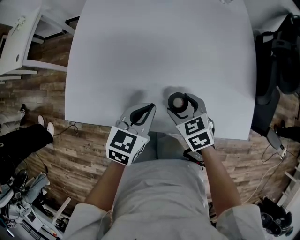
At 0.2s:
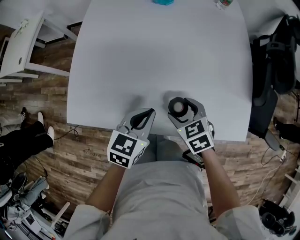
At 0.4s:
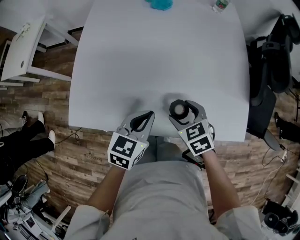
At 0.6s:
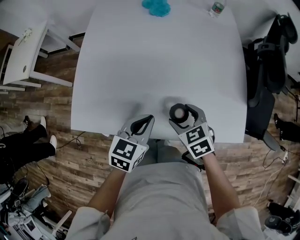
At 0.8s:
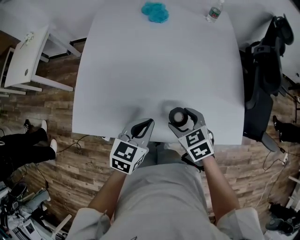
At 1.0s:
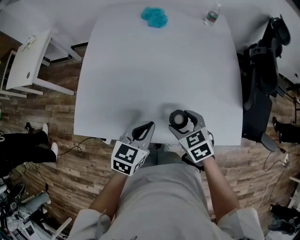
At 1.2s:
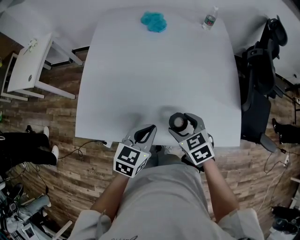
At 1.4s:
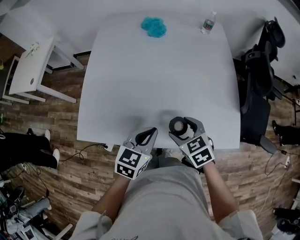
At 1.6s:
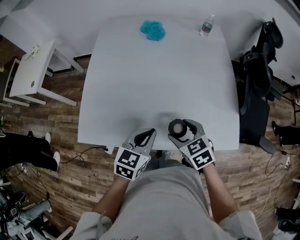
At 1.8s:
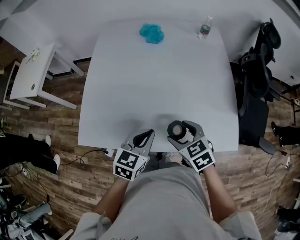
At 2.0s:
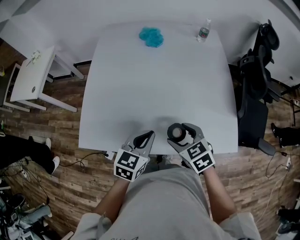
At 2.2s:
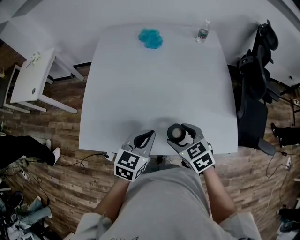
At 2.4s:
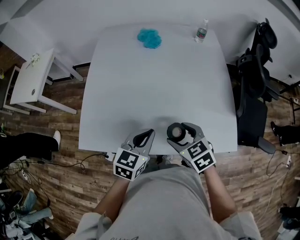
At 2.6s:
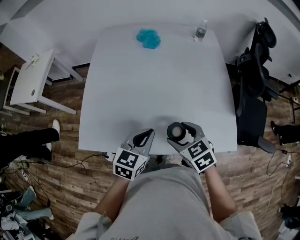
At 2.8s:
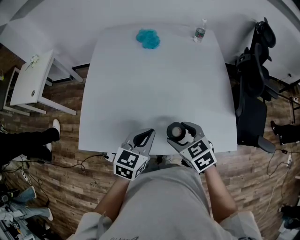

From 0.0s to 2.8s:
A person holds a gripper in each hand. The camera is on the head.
From 0.0s to 1.4s: The two grippers go about 5 cm upward.
From 1.4s to 2.8s: The grippers move only a little.

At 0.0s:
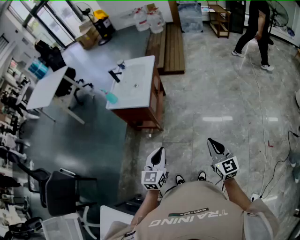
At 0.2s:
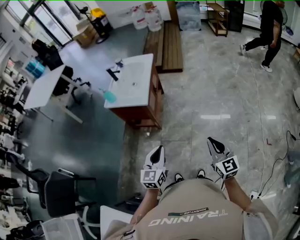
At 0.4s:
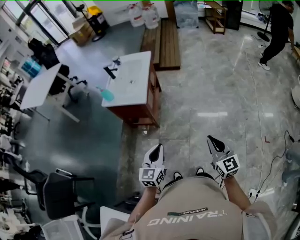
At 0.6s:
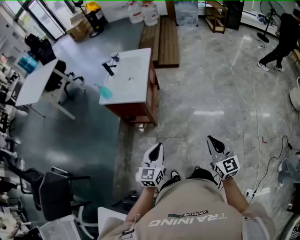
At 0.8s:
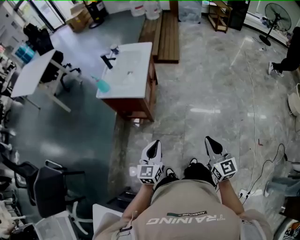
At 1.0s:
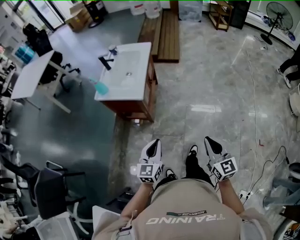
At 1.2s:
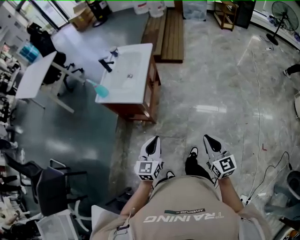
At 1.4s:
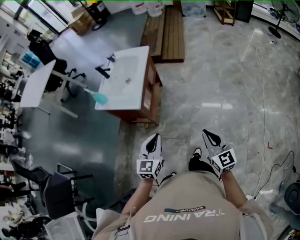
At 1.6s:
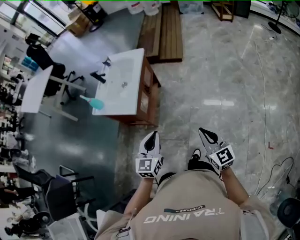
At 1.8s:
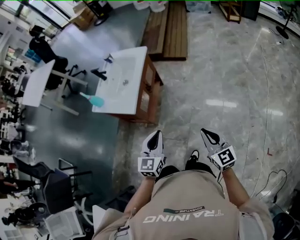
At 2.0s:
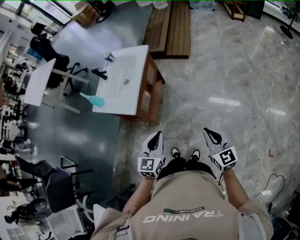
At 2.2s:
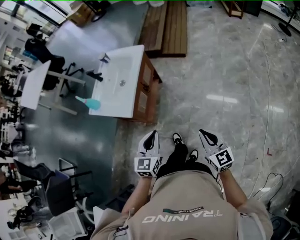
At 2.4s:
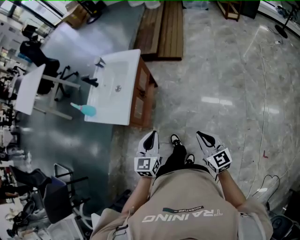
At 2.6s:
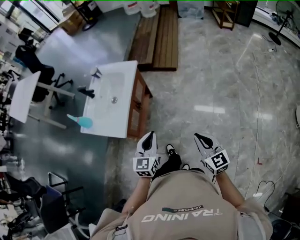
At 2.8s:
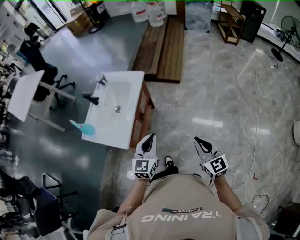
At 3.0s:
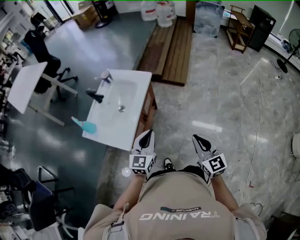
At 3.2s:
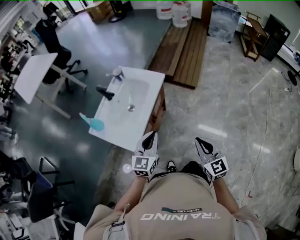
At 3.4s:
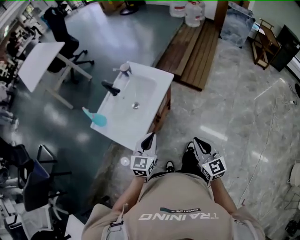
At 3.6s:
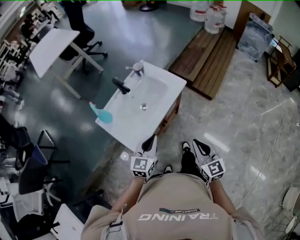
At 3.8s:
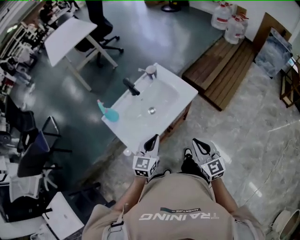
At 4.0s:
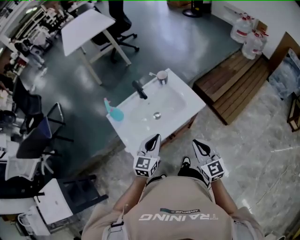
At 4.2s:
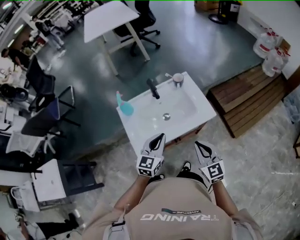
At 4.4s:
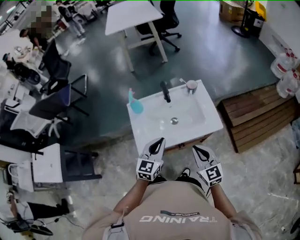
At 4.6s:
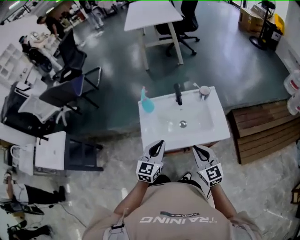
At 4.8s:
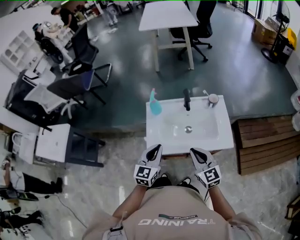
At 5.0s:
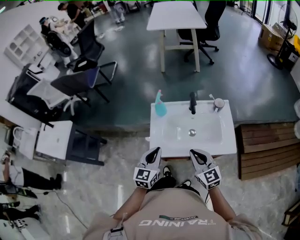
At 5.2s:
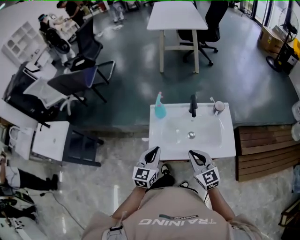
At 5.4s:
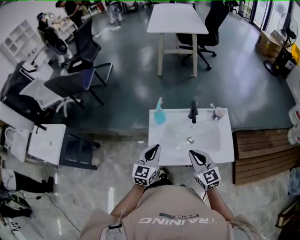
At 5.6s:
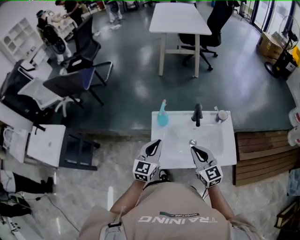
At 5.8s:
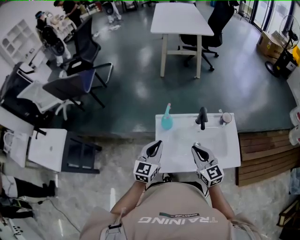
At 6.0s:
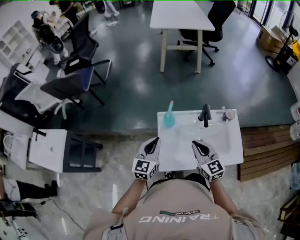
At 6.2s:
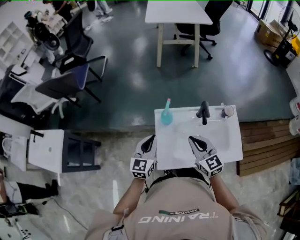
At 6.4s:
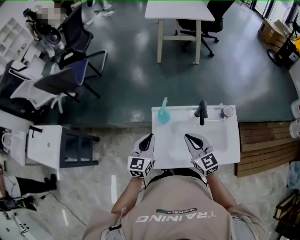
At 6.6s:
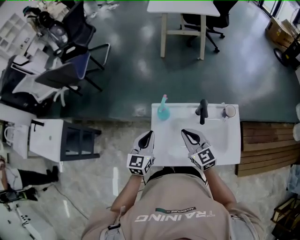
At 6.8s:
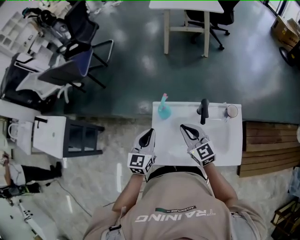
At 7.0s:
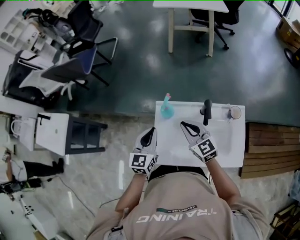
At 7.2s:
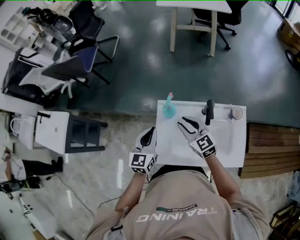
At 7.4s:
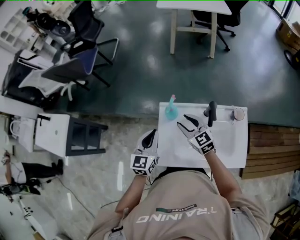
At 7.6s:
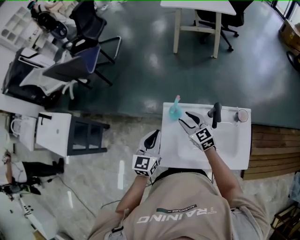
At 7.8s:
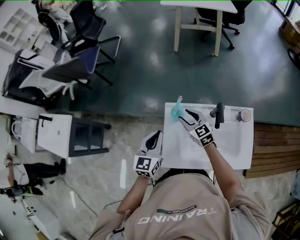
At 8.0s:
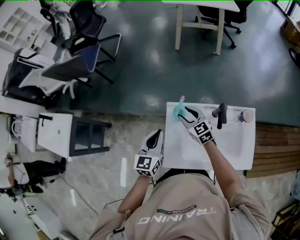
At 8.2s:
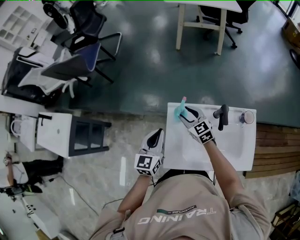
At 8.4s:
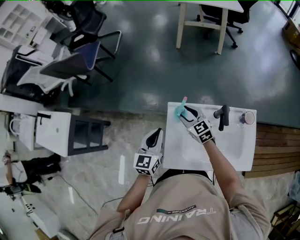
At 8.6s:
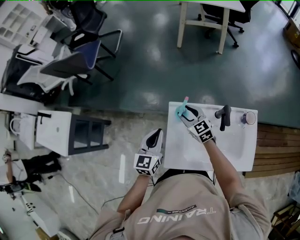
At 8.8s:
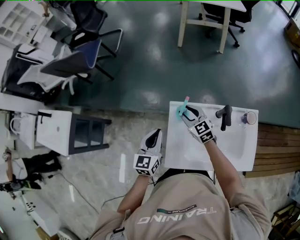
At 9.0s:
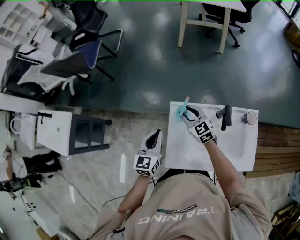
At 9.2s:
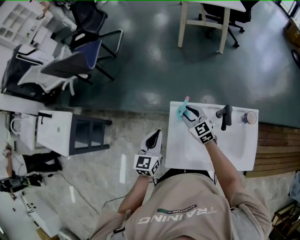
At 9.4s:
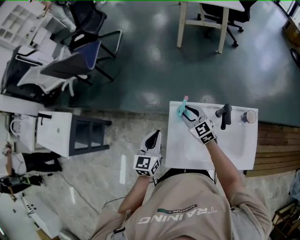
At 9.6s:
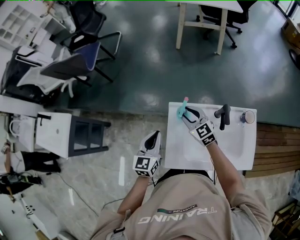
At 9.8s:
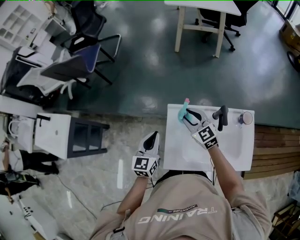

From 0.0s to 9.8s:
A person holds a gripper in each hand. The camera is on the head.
From 0.0s to 1.4s: Both grippers travel together forward, approximately 15 cm.
From 1.4s to 2.8s: Both grippers travel together forward, about 25 cm.
From 2.8s to 4.2s: The left gripper ends up roughly 20 cm from where it was, and turns by about 40 degrees; the right gripper moves roughly 35 cm, and rotates approximately 50 degrees.
From 4.2s to 5.6s: The left gripper shifts by about 20 cm, and changes its angle by approximately 30 degrees. The right gripper moves approximately 20 cm, and changes its angle by roughly 30 degrees.
From 5.6s to 7.0s: The left gripper shifts about 5 cm forward; the right gripper travels forward by about 15 cm.
From 7.0s to 8.4s: The right gripper travels forward, downward and to the left by approximately 15 cm, and opens up, while the left gripper ends up about 5 cm from where it was.
From 8.4s to 9.8s: The right gripper travels upward by some 5 cm.

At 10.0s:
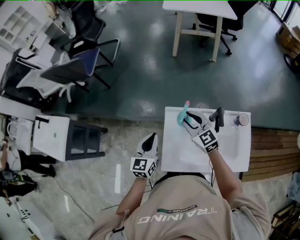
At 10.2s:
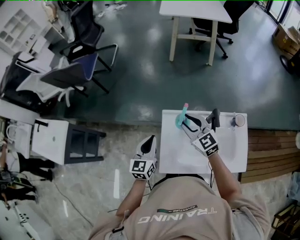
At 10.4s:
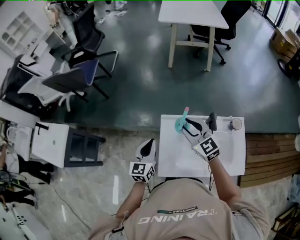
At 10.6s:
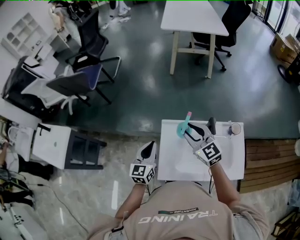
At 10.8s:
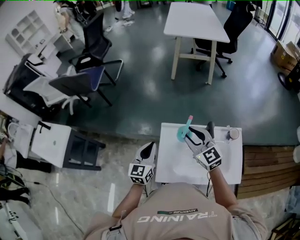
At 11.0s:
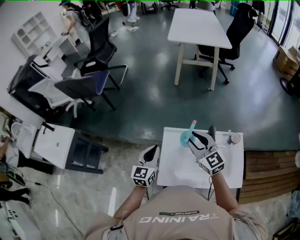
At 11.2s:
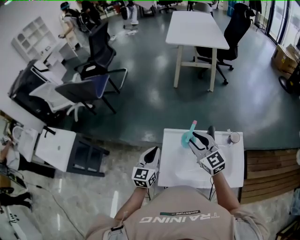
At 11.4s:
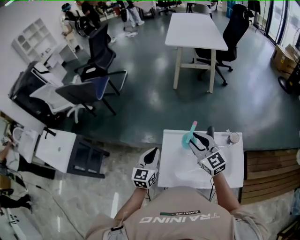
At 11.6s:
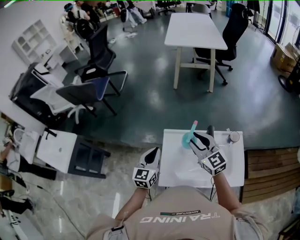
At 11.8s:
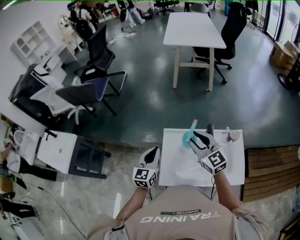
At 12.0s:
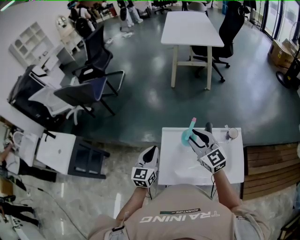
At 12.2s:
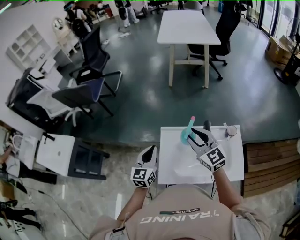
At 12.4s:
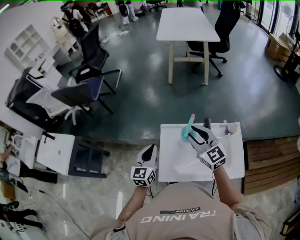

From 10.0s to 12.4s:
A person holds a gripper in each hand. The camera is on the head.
From 10.0s to 11.2s: The right gripper travels upward and backward by approximately 10 cm.
From 11.2s to 12.4s: The grippers make only small movements.

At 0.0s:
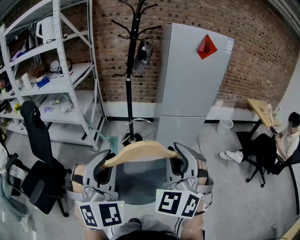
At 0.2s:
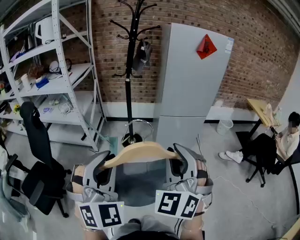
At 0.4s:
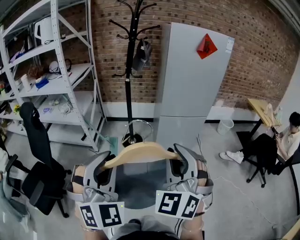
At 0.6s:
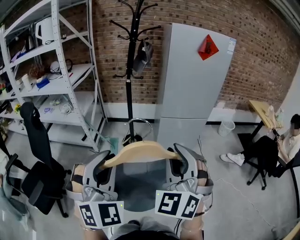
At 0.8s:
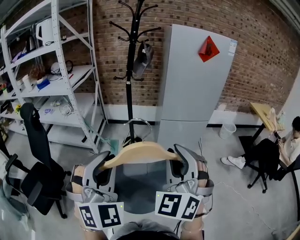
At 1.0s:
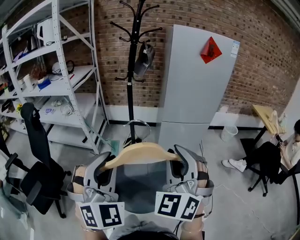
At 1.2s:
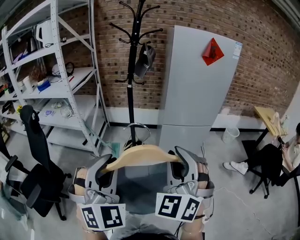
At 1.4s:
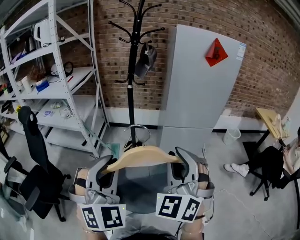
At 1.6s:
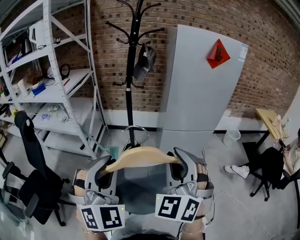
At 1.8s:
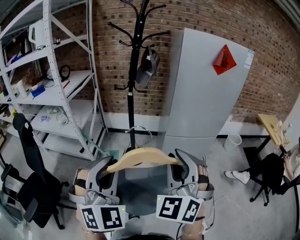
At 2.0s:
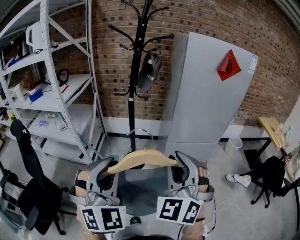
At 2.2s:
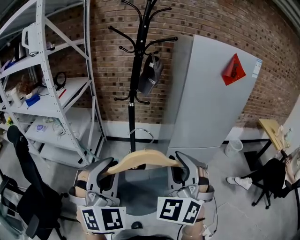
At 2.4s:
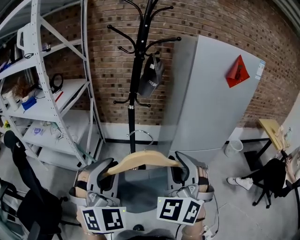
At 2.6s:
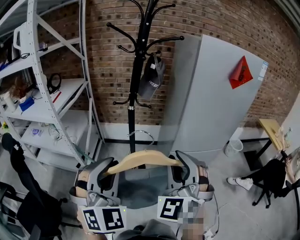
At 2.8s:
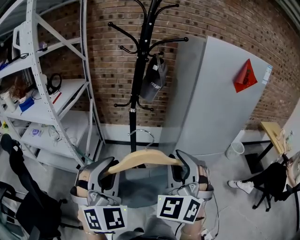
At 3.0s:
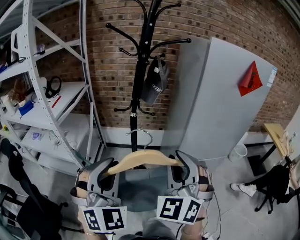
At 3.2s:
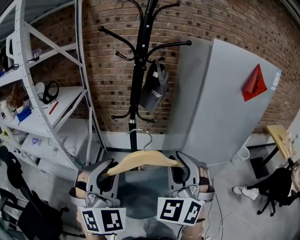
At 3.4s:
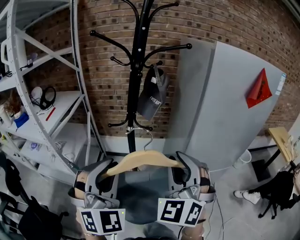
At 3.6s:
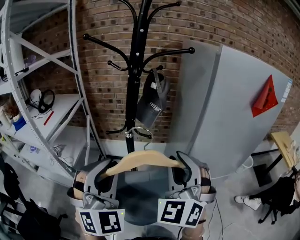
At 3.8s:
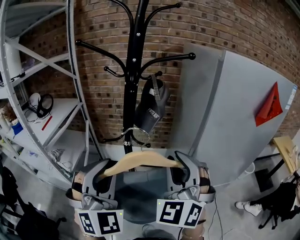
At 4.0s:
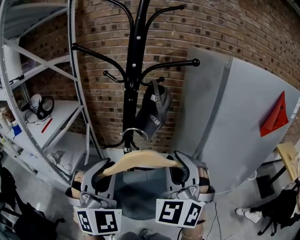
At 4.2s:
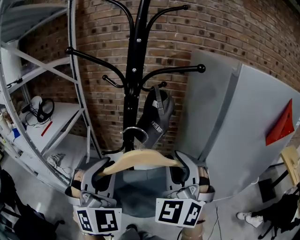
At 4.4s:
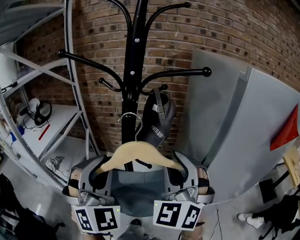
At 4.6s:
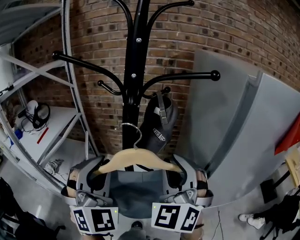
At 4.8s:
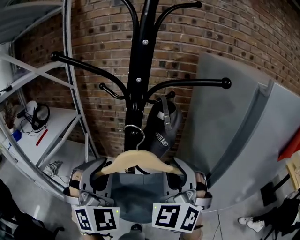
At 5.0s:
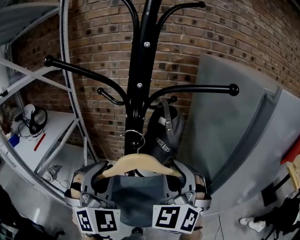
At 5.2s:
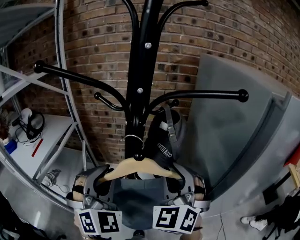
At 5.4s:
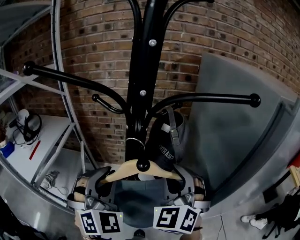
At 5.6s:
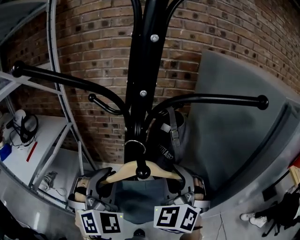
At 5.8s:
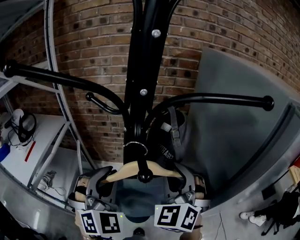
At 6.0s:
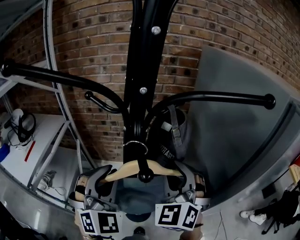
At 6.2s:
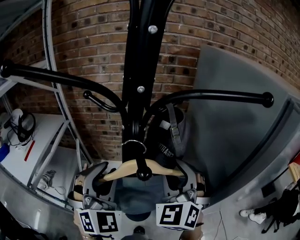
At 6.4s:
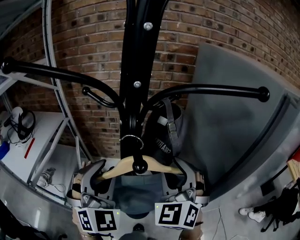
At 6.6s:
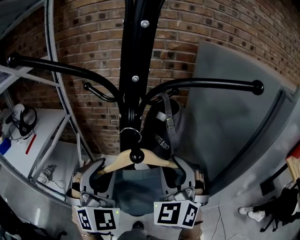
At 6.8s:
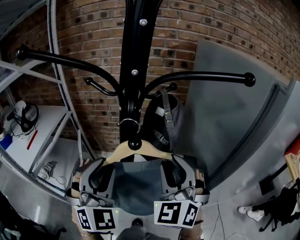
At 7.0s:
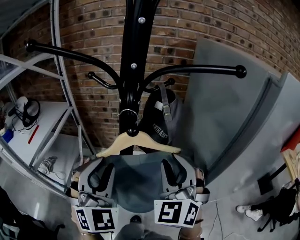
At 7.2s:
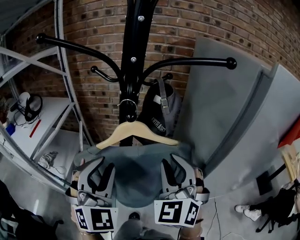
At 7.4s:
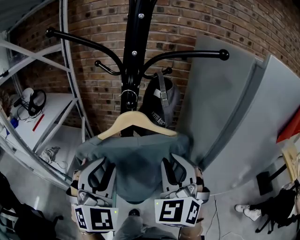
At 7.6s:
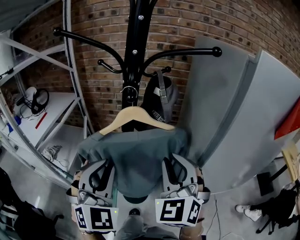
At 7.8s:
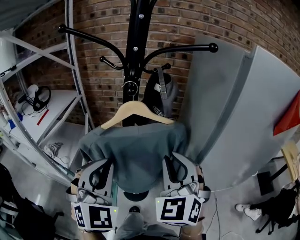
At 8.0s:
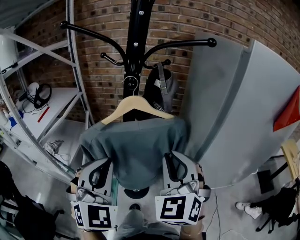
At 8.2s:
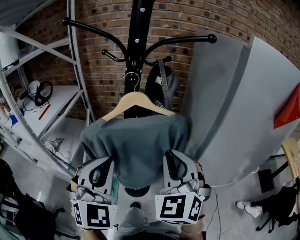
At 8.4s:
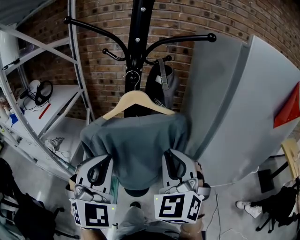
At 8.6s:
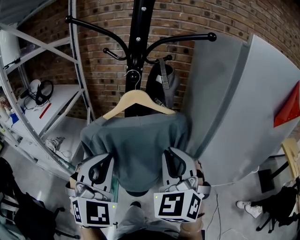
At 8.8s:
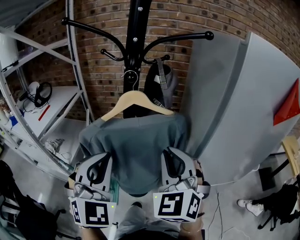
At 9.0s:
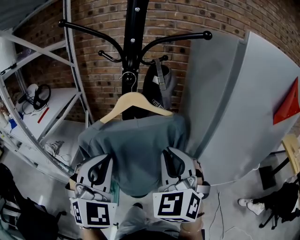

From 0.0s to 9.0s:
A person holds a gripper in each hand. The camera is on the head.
From 0.0s to 1.6s: Both grippers travel together forward, about 15 cm.
From 1.6s to 3.0s: Both grippers travel together forward, approximately 25 cm.
From 3.0s to 4.4s: Both grippers move forward, about 30 cm.
From 4.4s to 6.0s: Both grippers travel together forward and downward, roughly 15 cm.
From 6.0s to 7.6s: The two grippers go approximately 15 cm backward.
From 7.6s to 9.0s: The grippers stay close to where they were, moving slightly.
